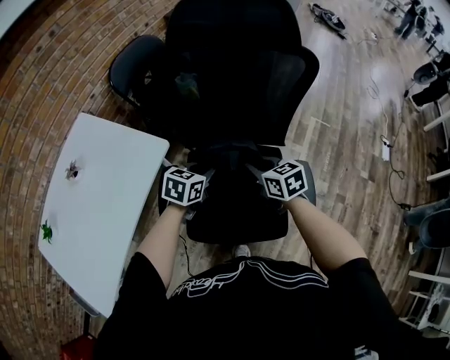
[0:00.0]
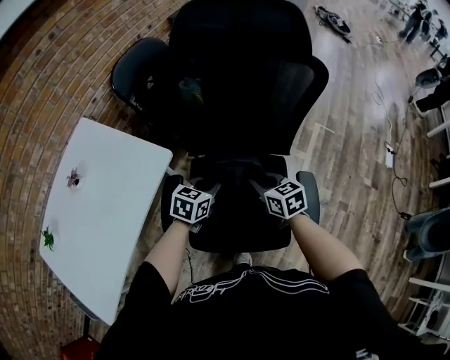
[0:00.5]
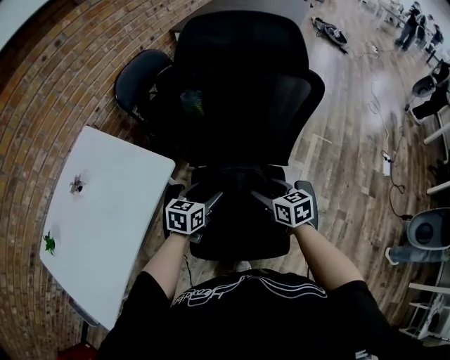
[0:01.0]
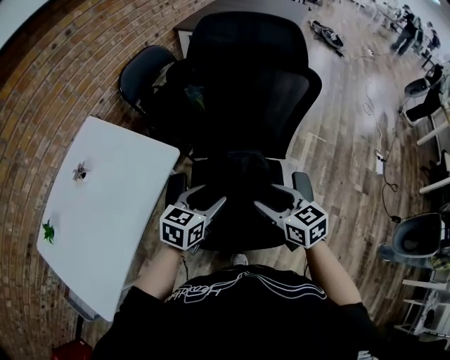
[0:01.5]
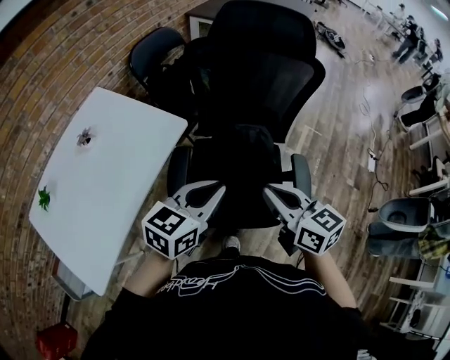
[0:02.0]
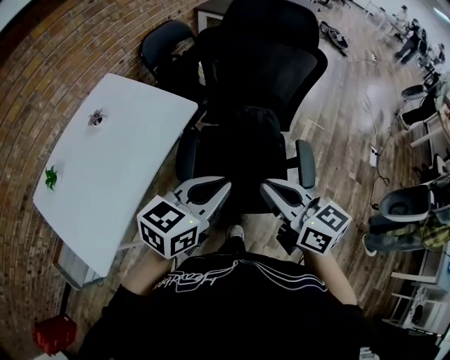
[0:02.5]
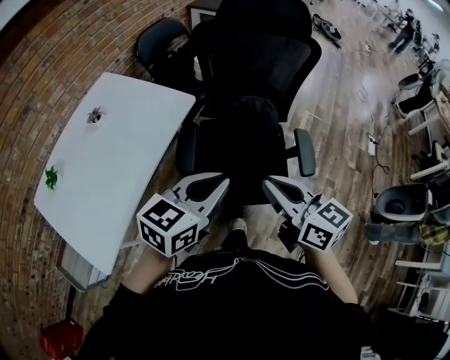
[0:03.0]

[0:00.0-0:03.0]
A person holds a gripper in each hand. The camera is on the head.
0:00.0 to 0:01.5: The left gripper shifts roughly 10 cm upward and backward, and opens; the right gripper moves backward and upward, approximately 15 cm, and opens.
0:01.5 to 0:03.0: The two grippers go about 25 cm backward and upward. The right gripper closes its fingers. The left gripper closes.

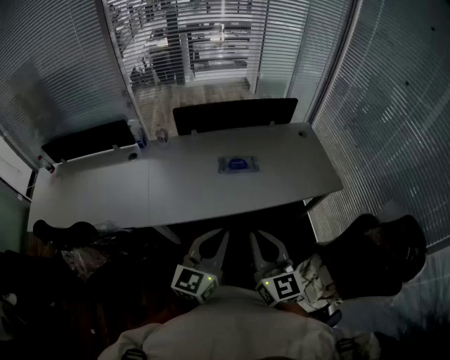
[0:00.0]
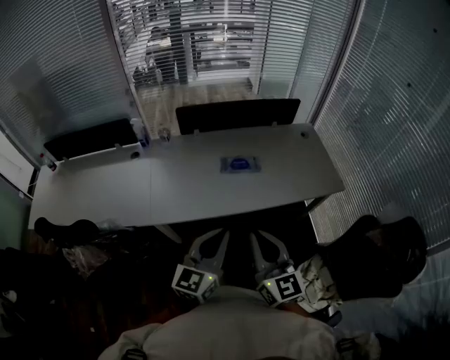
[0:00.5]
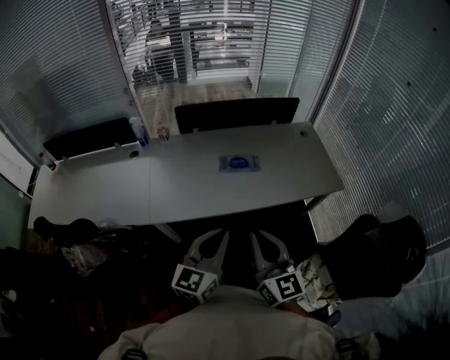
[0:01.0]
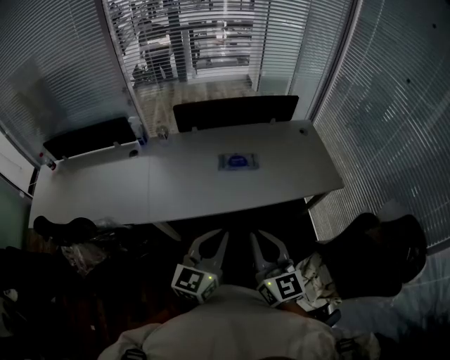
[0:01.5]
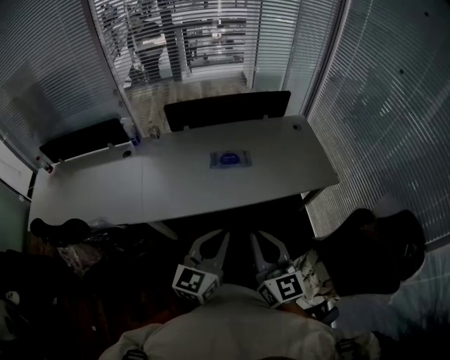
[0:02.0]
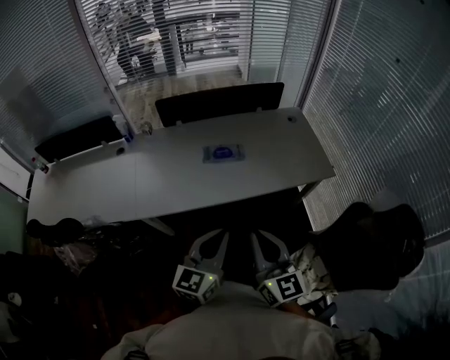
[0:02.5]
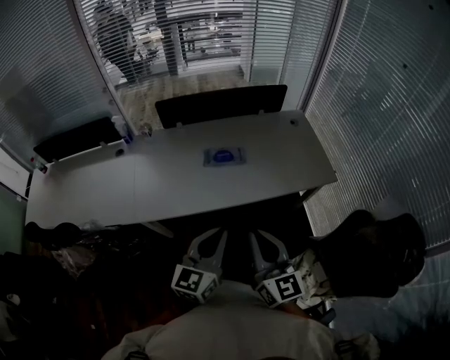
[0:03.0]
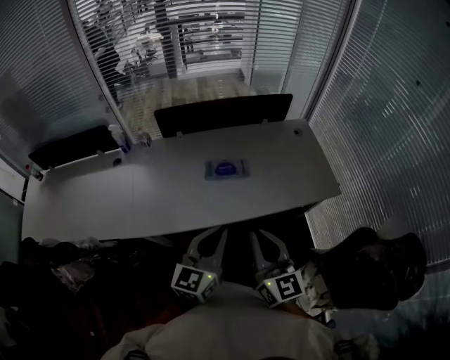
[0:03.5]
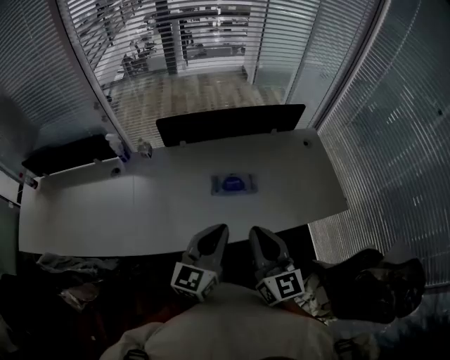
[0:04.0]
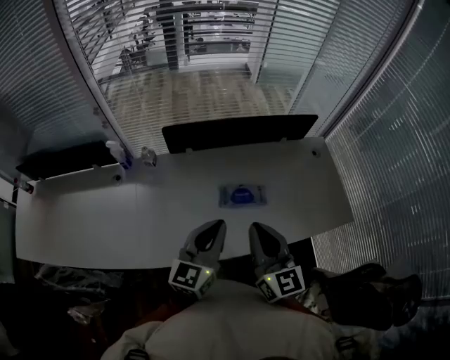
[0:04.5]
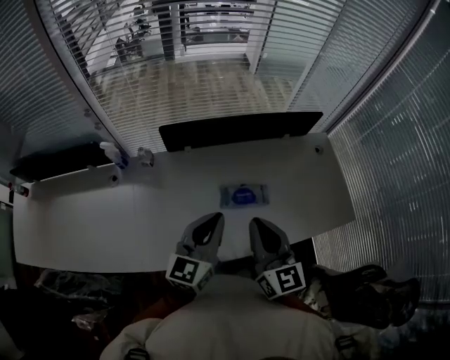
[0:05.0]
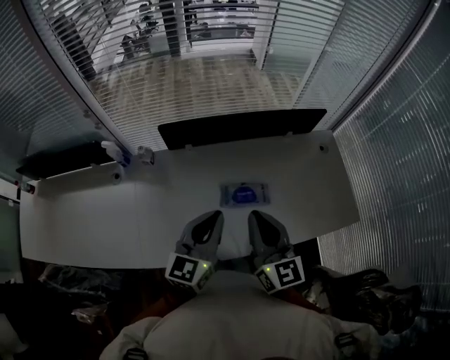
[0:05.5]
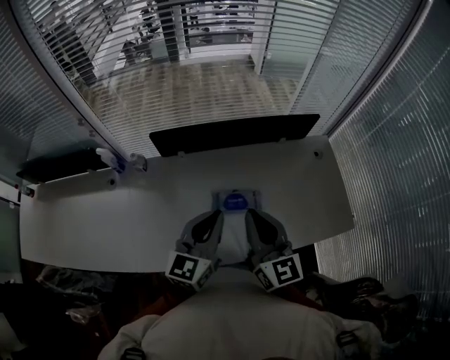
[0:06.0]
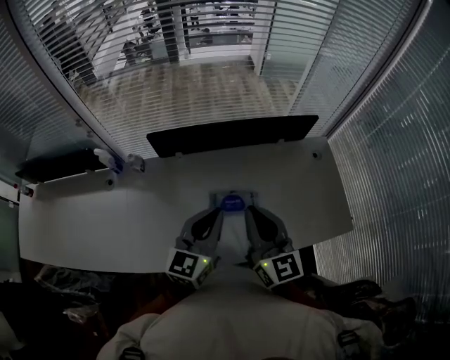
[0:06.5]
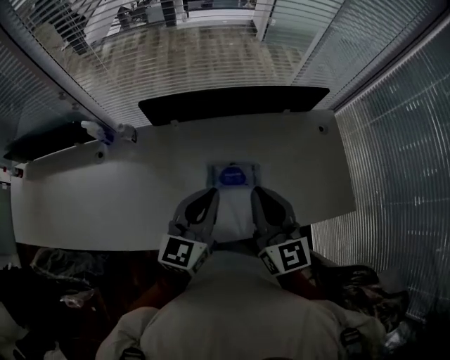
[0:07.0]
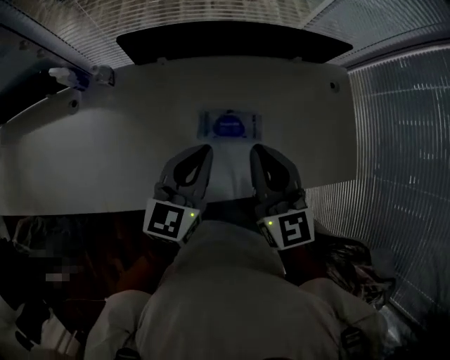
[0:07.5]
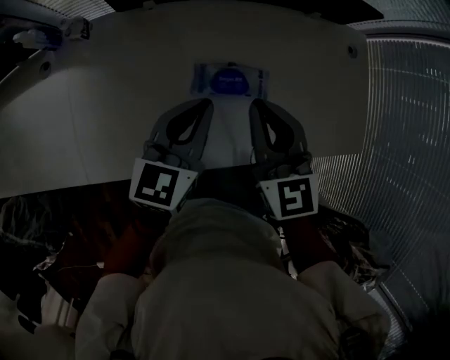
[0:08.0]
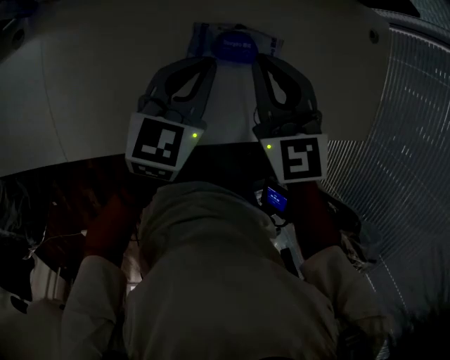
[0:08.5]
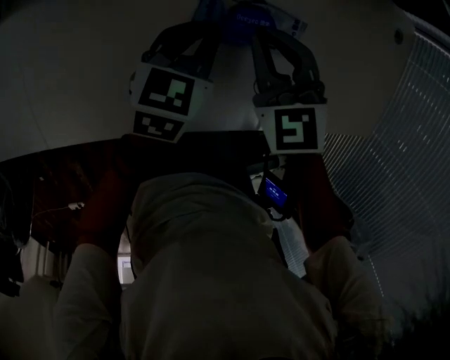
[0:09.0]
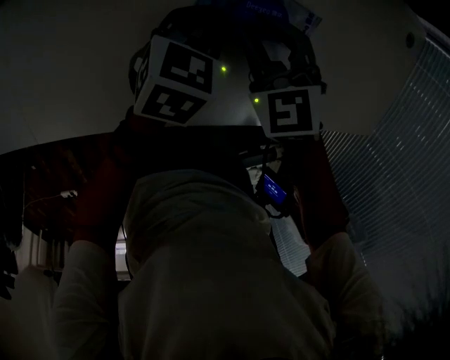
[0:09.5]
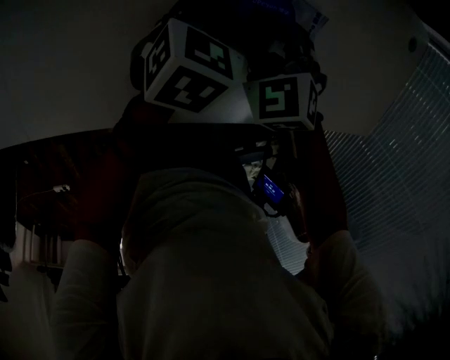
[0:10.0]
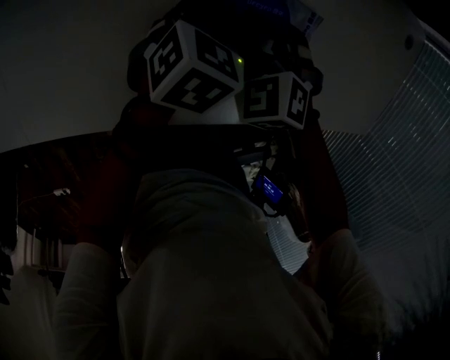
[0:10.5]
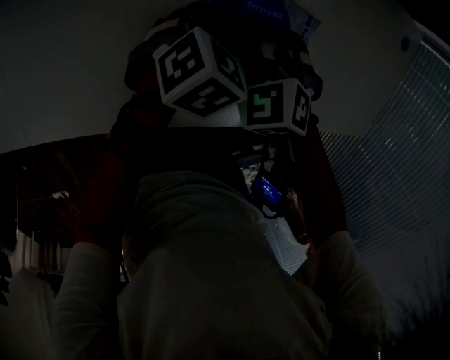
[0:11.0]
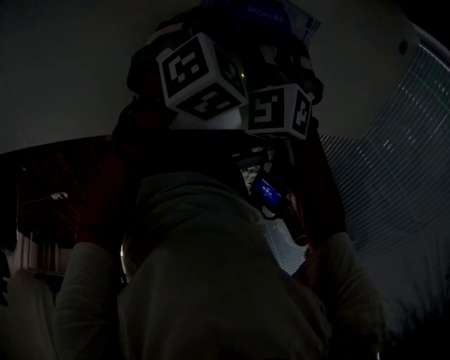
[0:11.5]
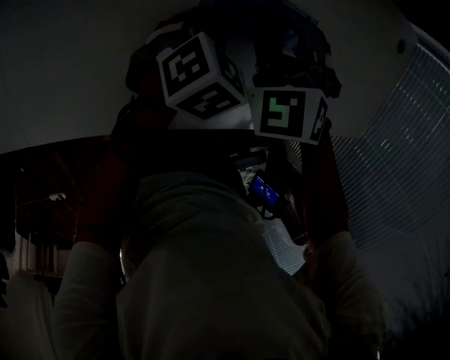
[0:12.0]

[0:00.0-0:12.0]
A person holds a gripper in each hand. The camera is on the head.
0:00.0 to 0:02.0: Both grippers travel together to the right, some 5 cm.
0:02.0 to 0:04.0: The grippers both shift forward by some 20 cm.
0:04.0 to 0:06.0: The grippers both shift forward by about 15 cm.
0:06.0 to 0:08.0: The right gripper is displaced downward and forward by roughly 15 cm, and swivels approximately 20 degrees. The left gripper shifts roughly 15 cm downward.
0:08.0 to 0:10.0: The two grippers go some 25 cm downward. The left gripper tilts its fingers roughly 30 degrees downward, while the right gripper tilts its fingers some 40 degrees downward, and opens its fingers.
0:10.0 to 0:12.0: The right gripper travels upward by roughly 5 cm.

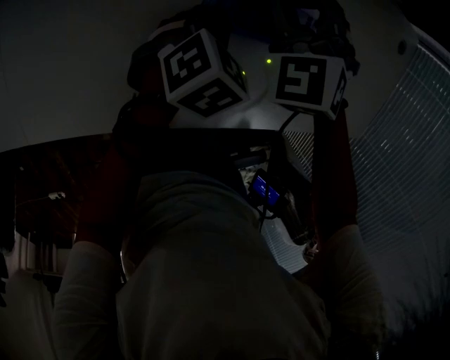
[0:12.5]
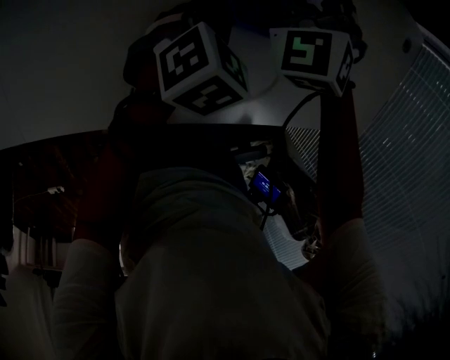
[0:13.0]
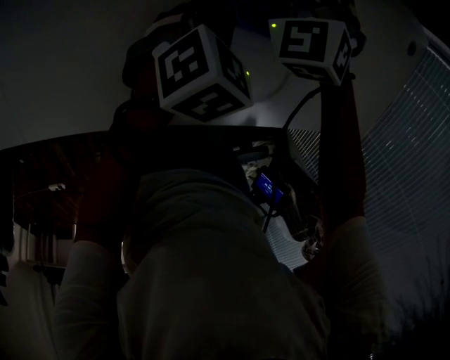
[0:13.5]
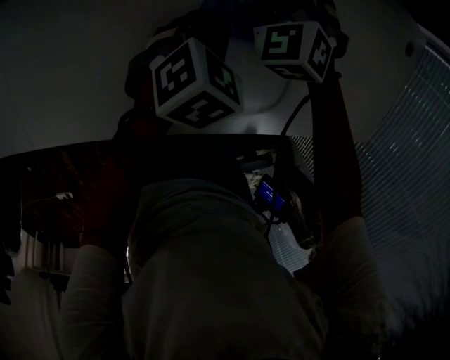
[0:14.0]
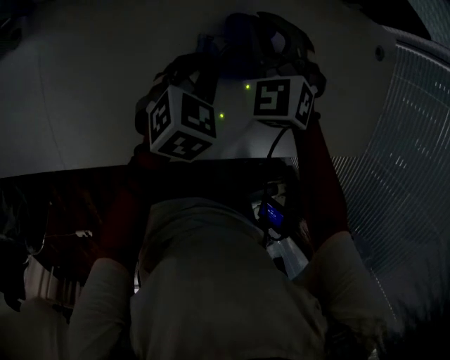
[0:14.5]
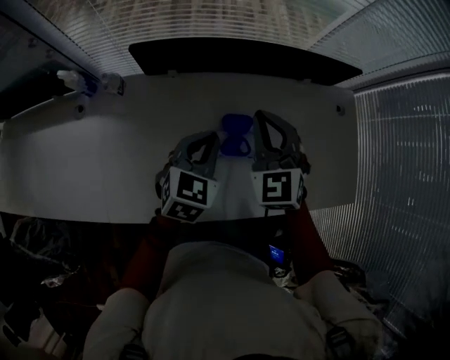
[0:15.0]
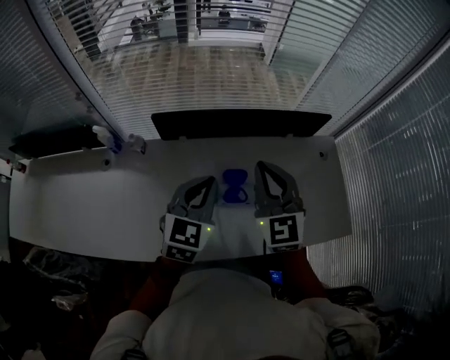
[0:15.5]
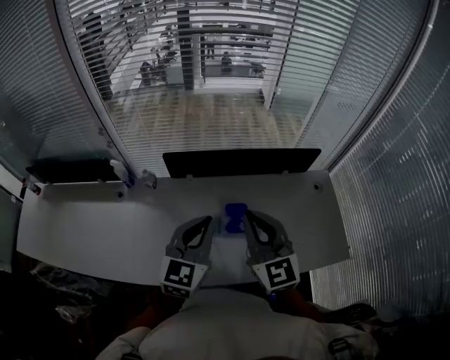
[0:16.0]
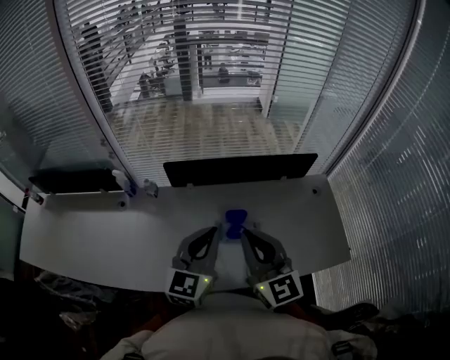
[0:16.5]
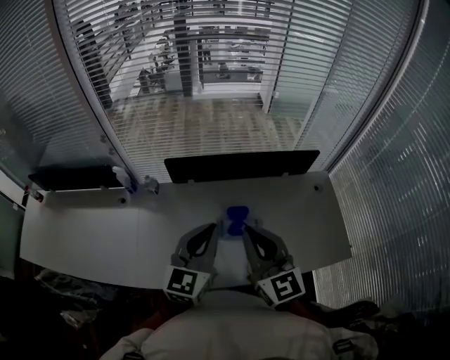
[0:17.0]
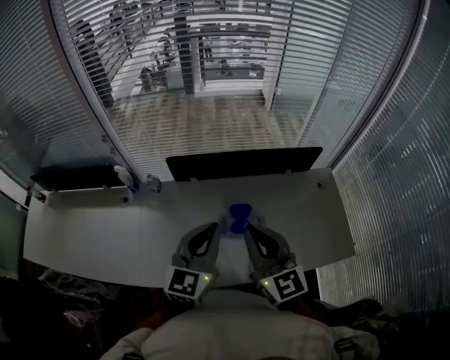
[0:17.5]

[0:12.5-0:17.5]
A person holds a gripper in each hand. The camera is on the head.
0:12.5 to 0:15.0: Both grippers move upward, approximately 25 cm. The right gripper swivels some 30 degrees. The left gripper turns by roughly 20 degrees.
0:15.0 to 0:17.5: The two grippers go roughly 25 cm upward and backward. The left gripper swivels some 30 degrees, while the right gripper changes its angle by about 40 degrees.

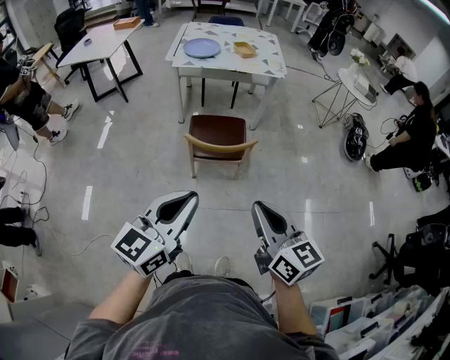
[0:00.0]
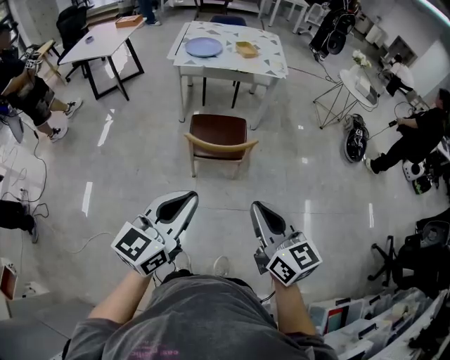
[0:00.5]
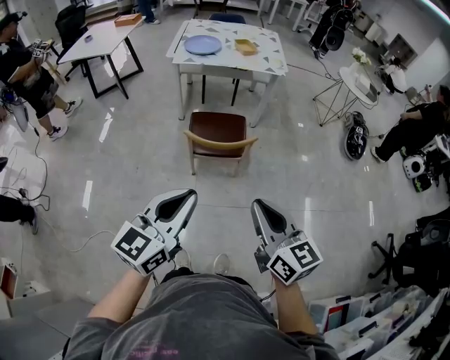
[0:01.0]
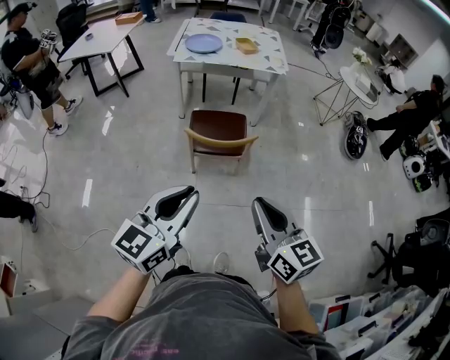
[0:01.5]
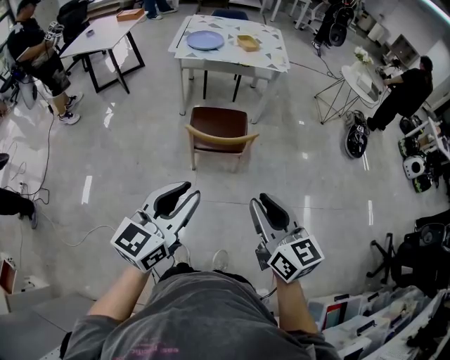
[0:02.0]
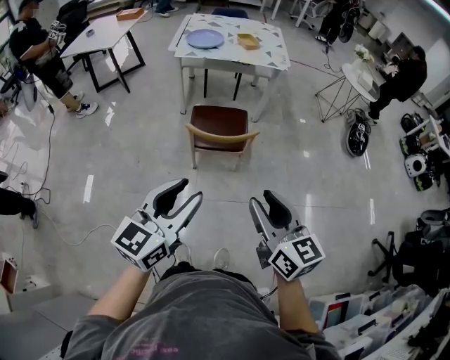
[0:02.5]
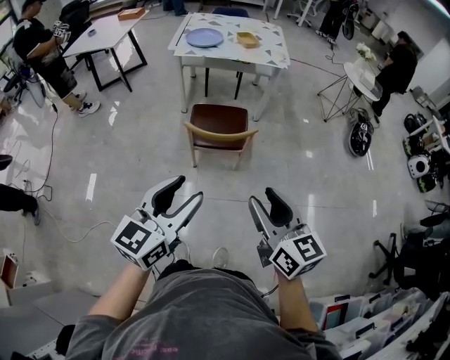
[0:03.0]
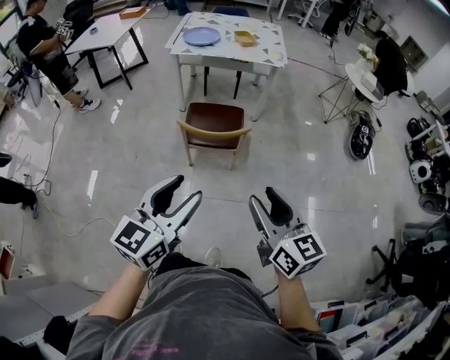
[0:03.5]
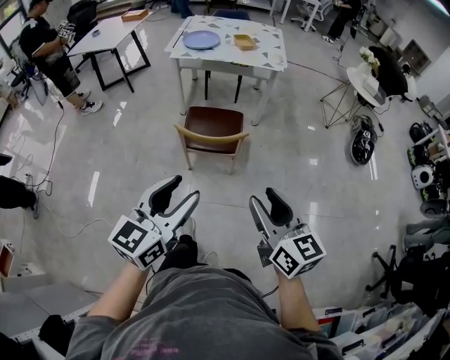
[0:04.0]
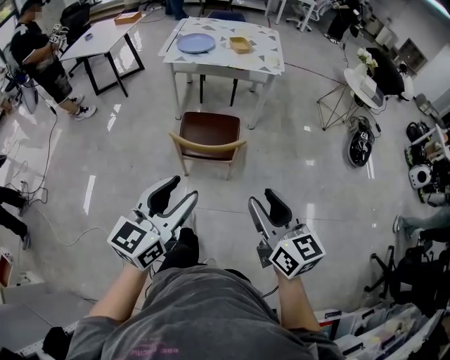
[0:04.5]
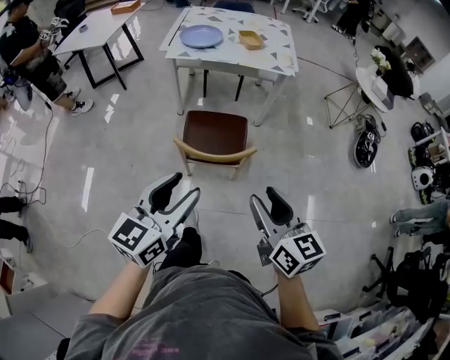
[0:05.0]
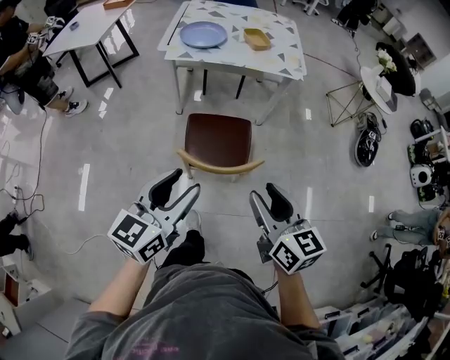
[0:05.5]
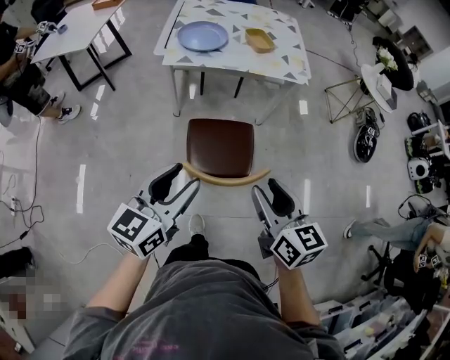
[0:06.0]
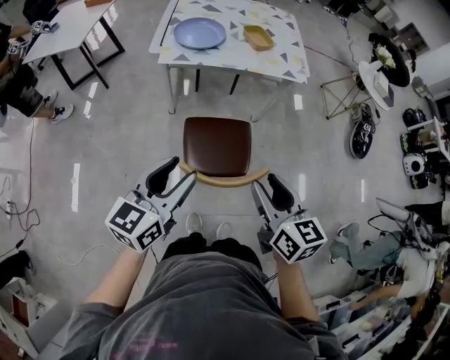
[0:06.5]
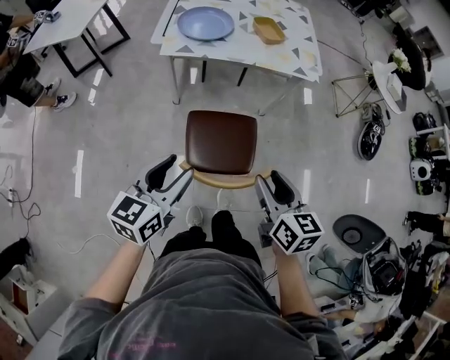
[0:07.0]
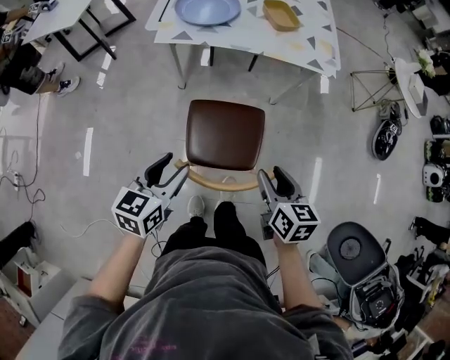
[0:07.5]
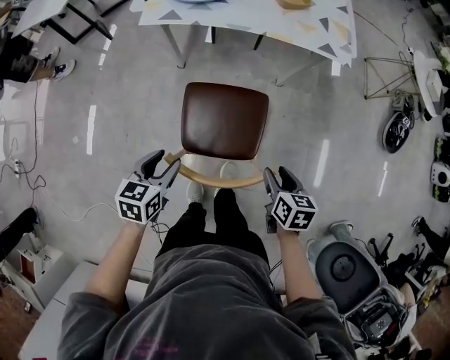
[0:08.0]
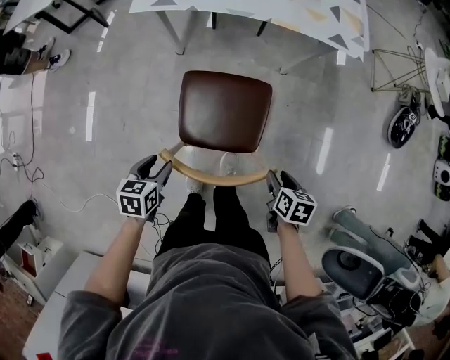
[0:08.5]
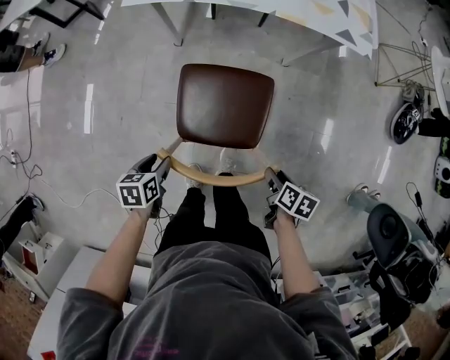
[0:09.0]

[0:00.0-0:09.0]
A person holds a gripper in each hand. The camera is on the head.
0:00.0 to 0:02.0: The two grippers keep their place.
0:02.0 to 0:04.5: Both grippers move to the right and forward, roughly 10 cm. The left gripper opens its fingers. Meanwhile the right gripper opens.
0:04.5 to 0:07.0: Both grippers move forward and to the left, roughly 40 cm. The right gripper turns by about 20 degrees.
0:07.0 to 0:09.0: The left gripper travels downward by about 35 cm, and angles its fingers downward, by approximately 40 degrees; the right gripper heads downward and to the right, covering about 35 cm, and tips its fingers downward by roughly 40 degrees.
